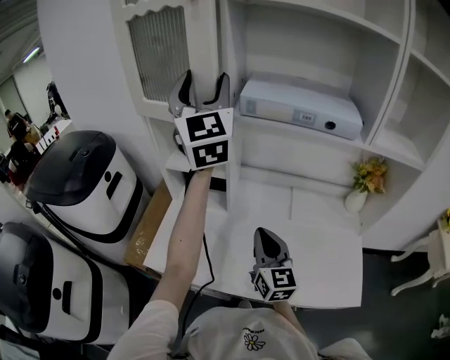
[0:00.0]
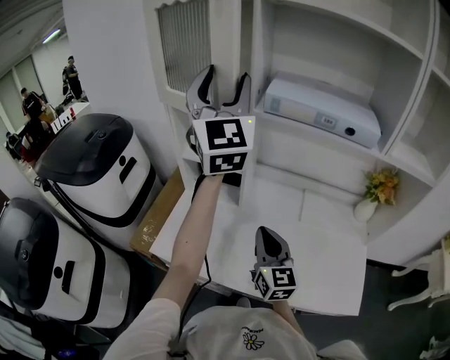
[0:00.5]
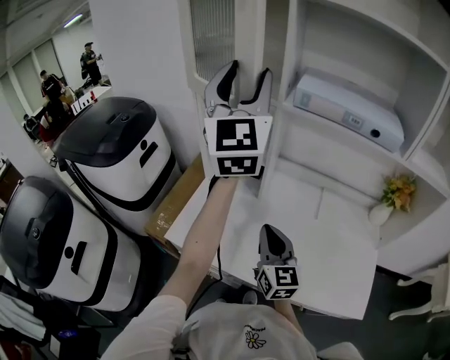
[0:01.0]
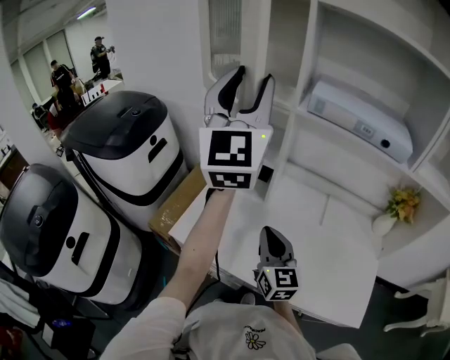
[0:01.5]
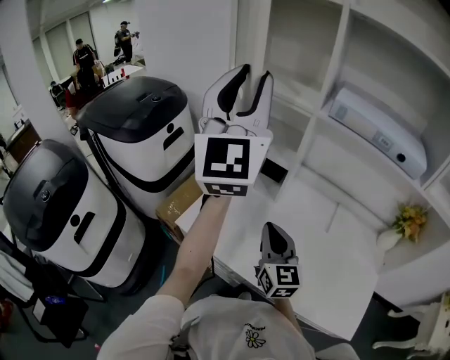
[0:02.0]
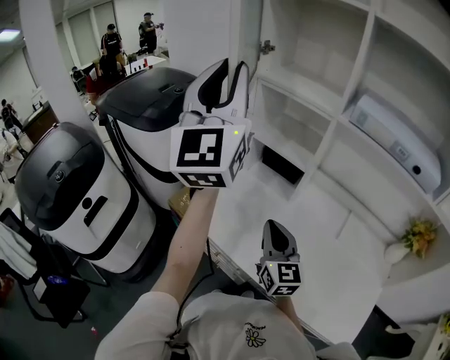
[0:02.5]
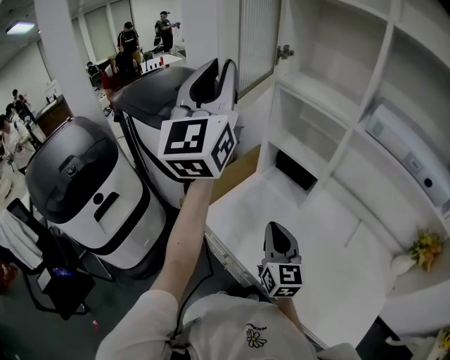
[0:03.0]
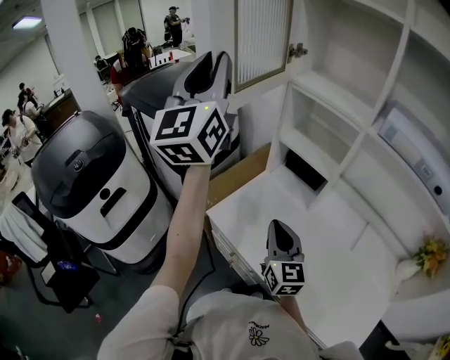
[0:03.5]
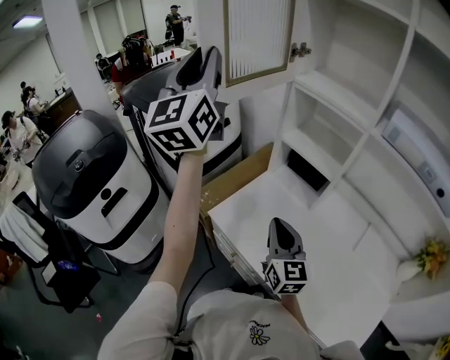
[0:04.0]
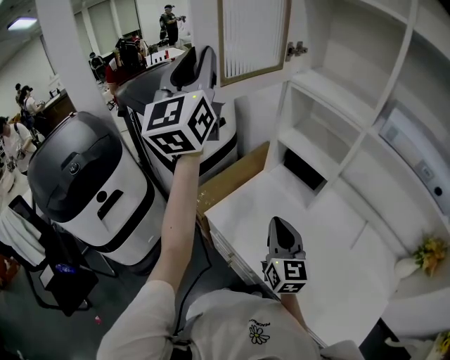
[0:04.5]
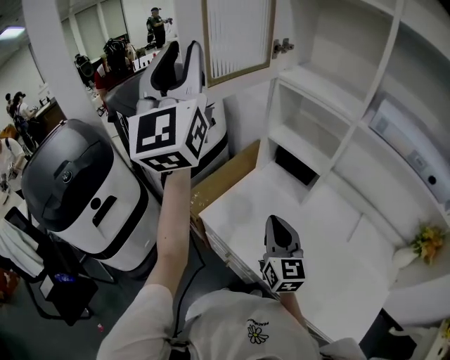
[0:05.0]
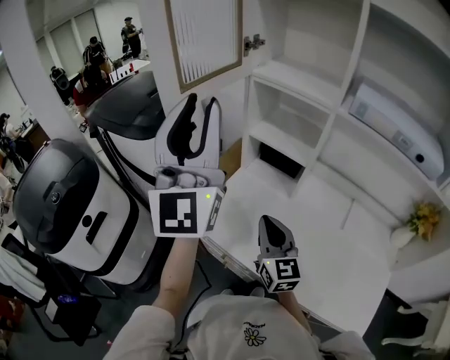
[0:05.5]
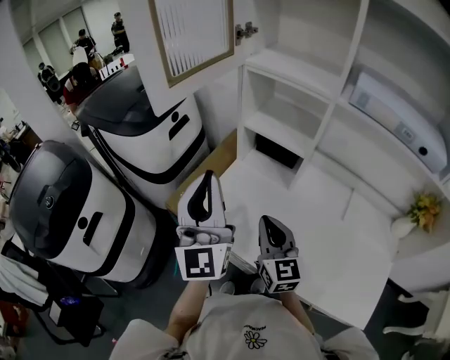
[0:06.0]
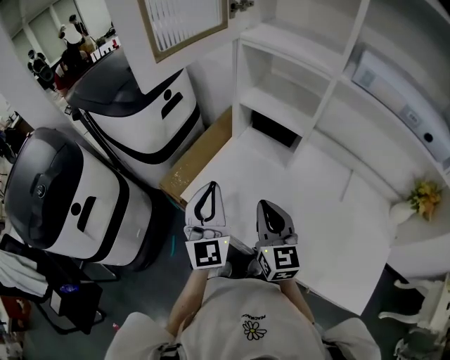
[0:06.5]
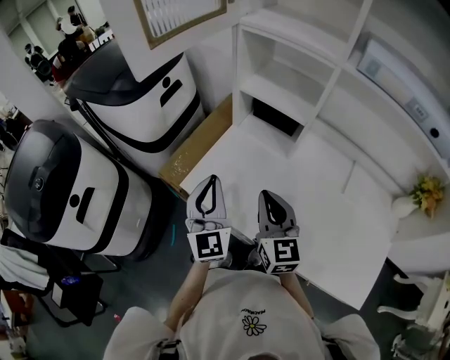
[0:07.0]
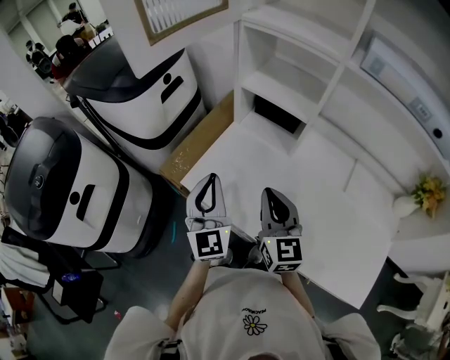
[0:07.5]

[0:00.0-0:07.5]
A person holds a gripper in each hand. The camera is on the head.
0:00.0 to 0:02.0: The left gripper is displaced backward and to the left by roughly 15 cm, and closes up, while the right gripper shifts approximately 10 cm to the left.
0:02.0 to 0:04.0: The left gripper moves to the left, approximately 20 cm. The right gripper shifts approximately 10 cm to the left.
0:04.0 to 0:05.5: The left gripper is displaced backward and to the right by some 15 cm.
0:05.5 to 0:07.5: The left gripper is displaced downward by roughly 30 cm, and points its fingers about 30 degrees further downward.

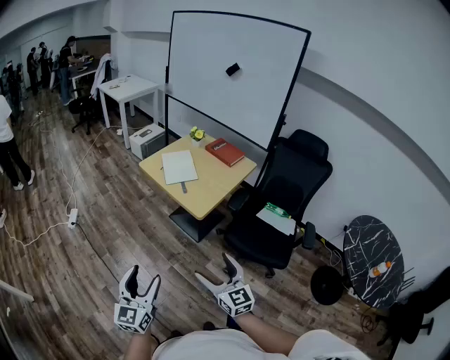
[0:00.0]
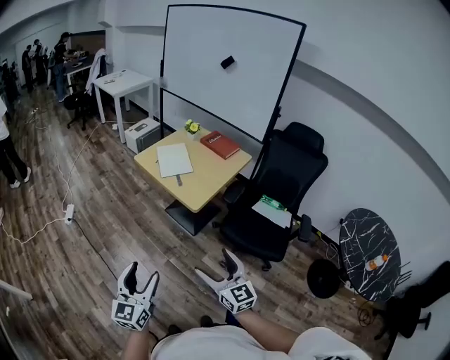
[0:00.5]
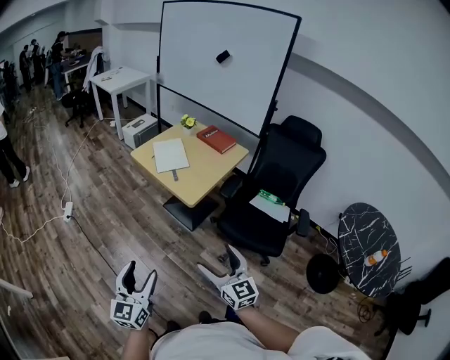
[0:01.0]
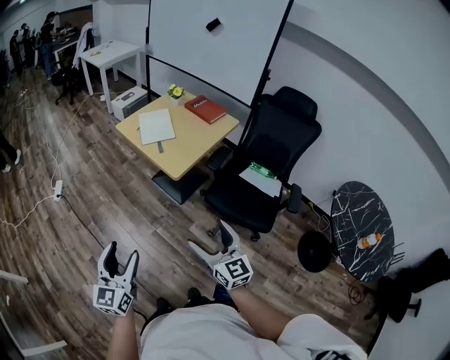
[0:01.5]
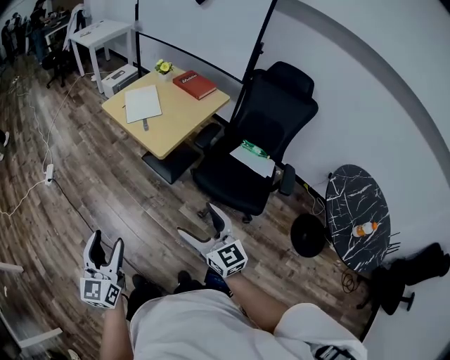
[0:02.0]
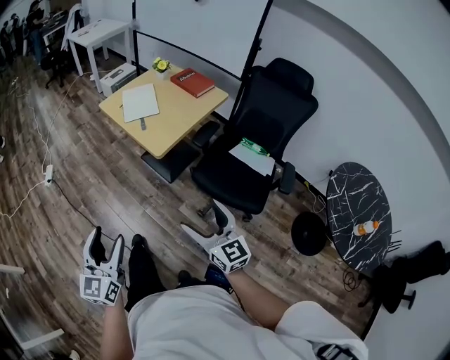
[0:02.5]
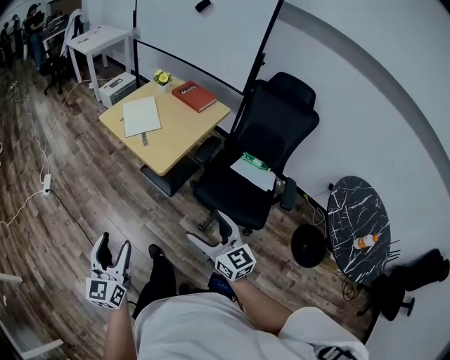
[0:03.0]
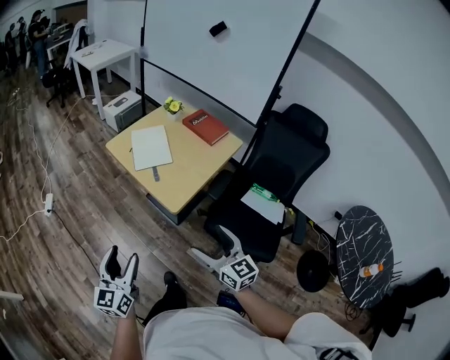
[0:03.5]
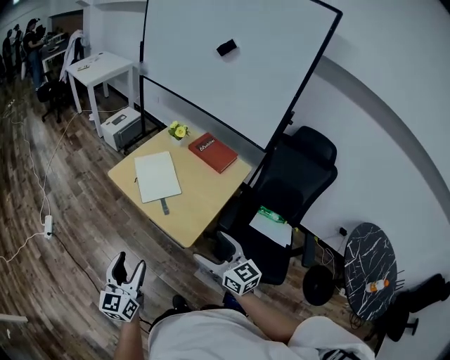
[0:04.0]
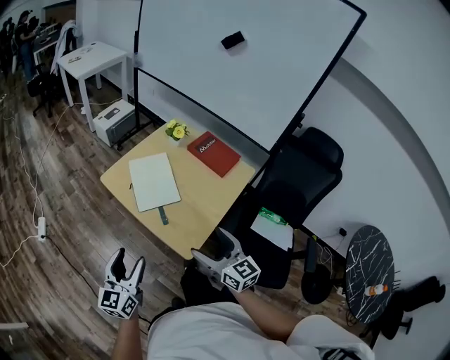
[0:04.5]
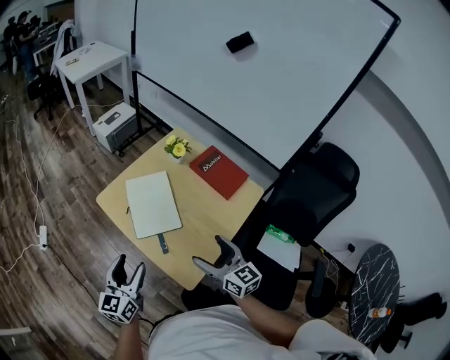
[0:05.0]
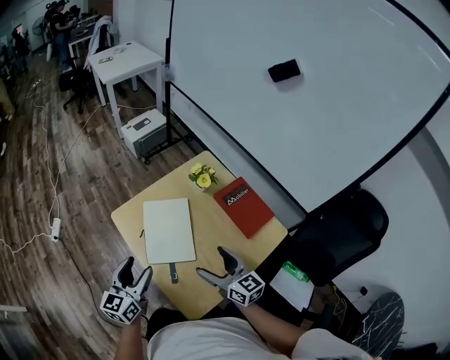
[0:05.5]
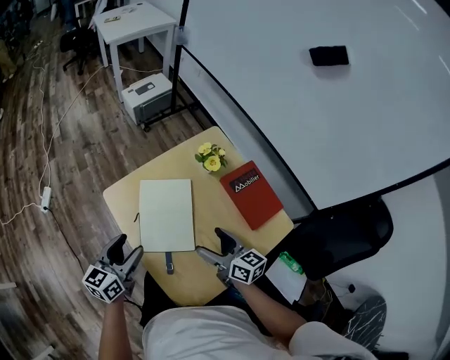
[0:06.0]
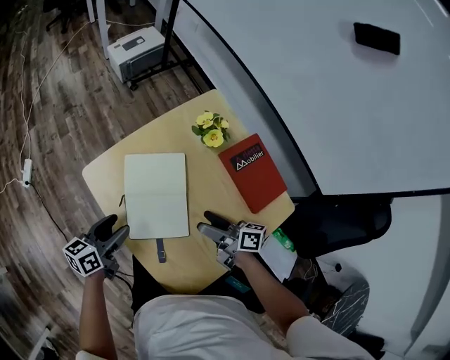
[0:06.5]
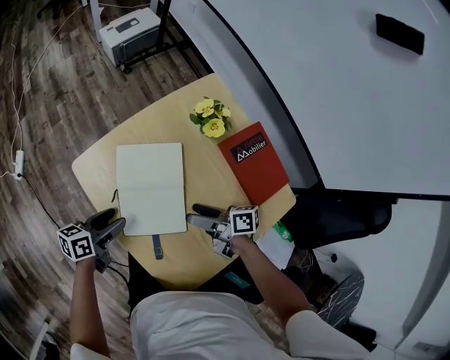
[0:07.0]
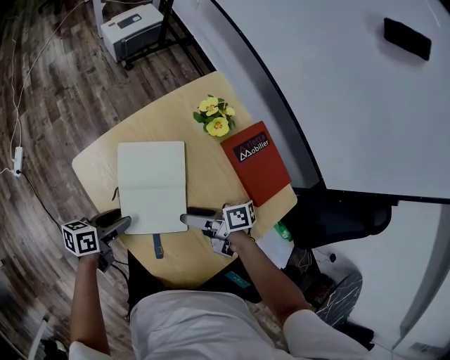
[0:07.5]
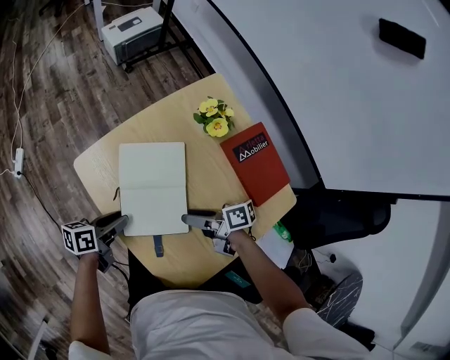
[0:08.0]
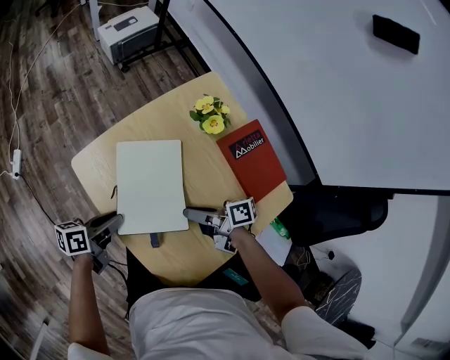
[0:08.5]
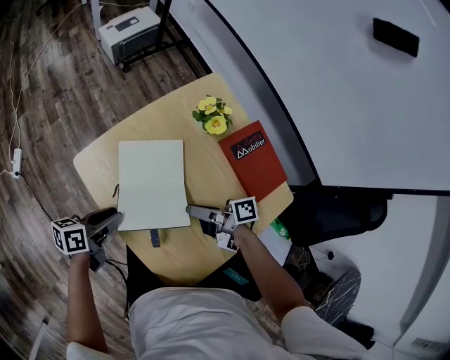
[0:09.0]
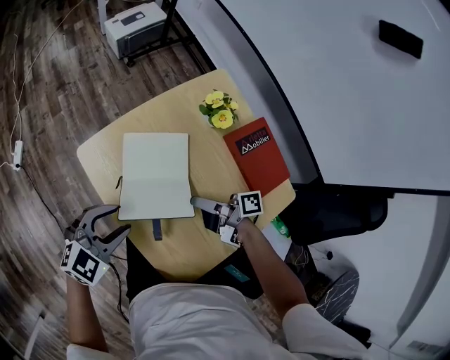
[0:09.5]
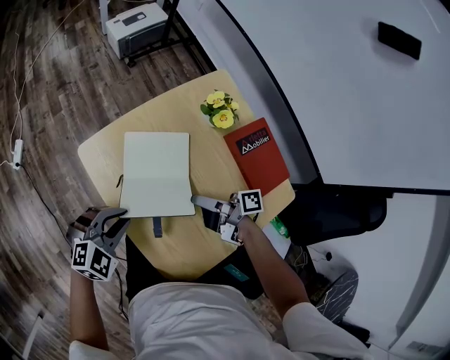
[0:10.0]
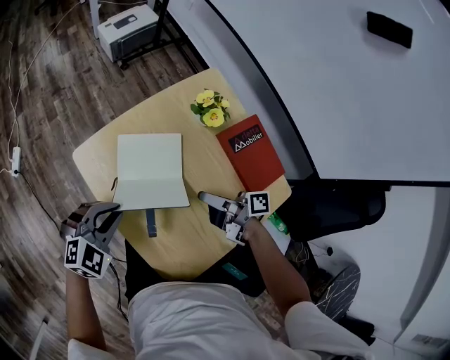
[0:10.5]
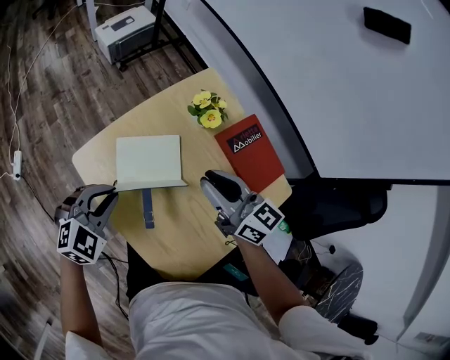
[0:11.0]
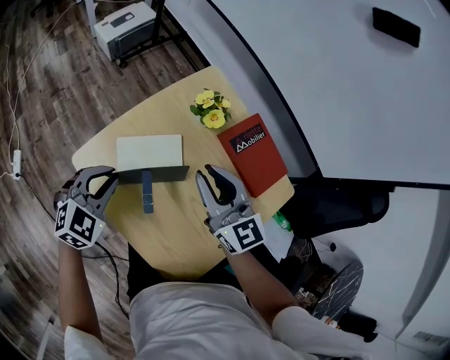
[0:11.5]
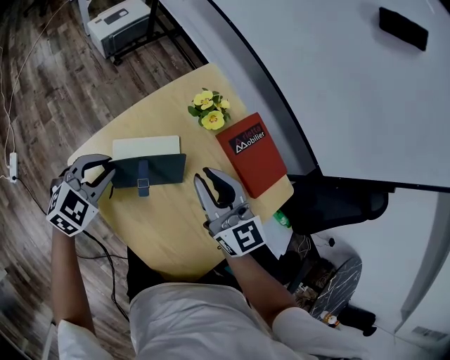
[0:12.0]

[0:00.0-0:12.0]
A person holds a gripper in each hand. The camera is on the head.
0:00.0 to 0:02.0: The left gripper heads to the right, covering about 5 cm; the right gripper moves to the right, roughly 10 cm.
0:02.0 to 0:04.0: The grippers both shift forward by about 30 cm.
0:04.0 to 0:06.0: Both grippers travel together forward, roughly 35 cm. The right gripper changes its angle by about 30 degrees.
0:06.0 to 0:08.0: The right gripper heads downward, covering about 10 cm, turns by some 50 degrees, and closes up. Meanwhile the left gripper heads downward, covering about 15 cm, swivels about 40 degrees, and closes.
0:08.0 to 0:10.0: The left gripper shifts about 10 cm upward, and twists approximately 80 degrees clockwise, seen from behind.
0:10.0 to 0:12.0: The right gripper is displaced upward and forward by about 15 cm, and rotates around the line of its fingers by about 80 degrees, counterclockwise from behind; the left gripper heads forward, covering roughly 15 cm.

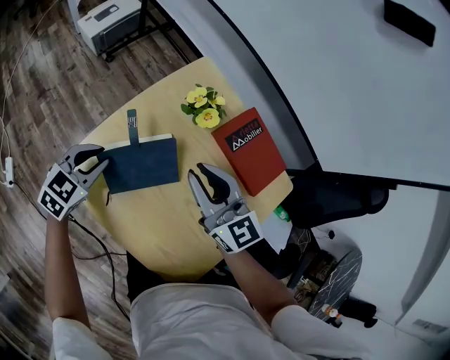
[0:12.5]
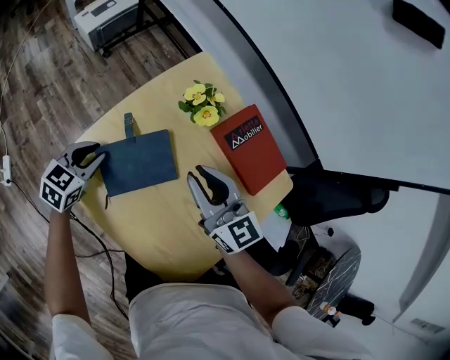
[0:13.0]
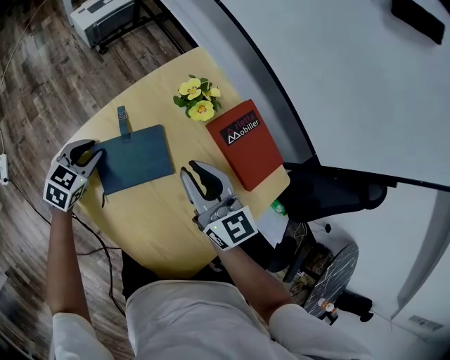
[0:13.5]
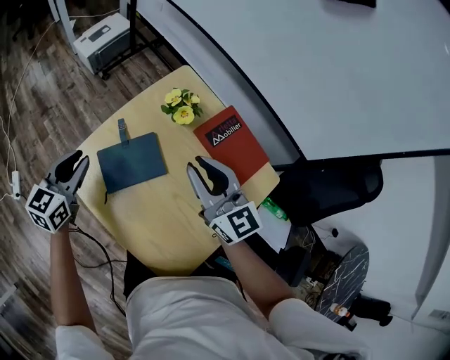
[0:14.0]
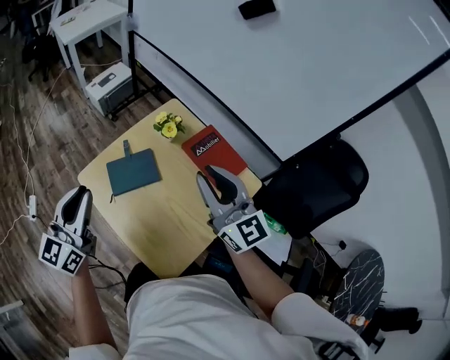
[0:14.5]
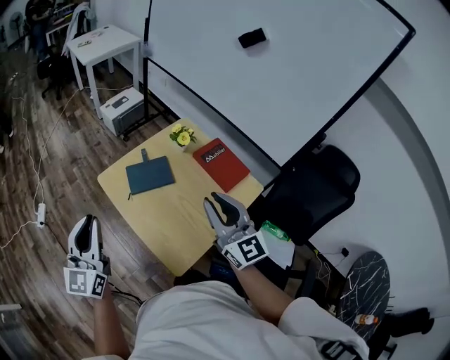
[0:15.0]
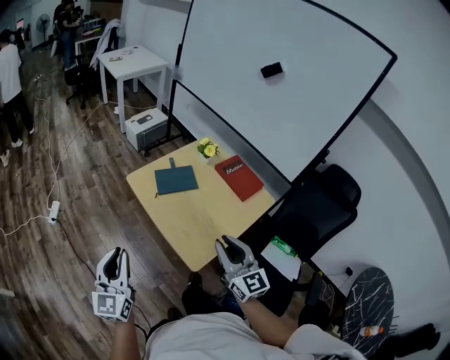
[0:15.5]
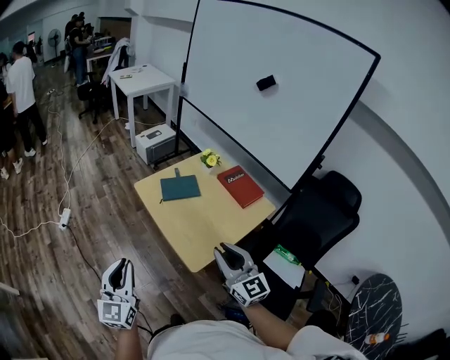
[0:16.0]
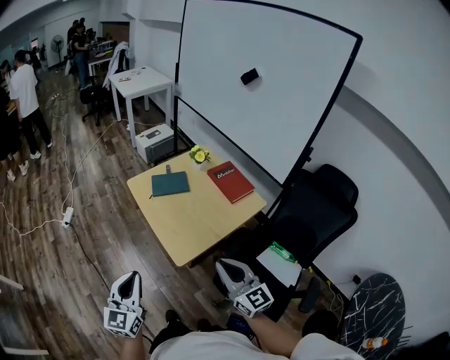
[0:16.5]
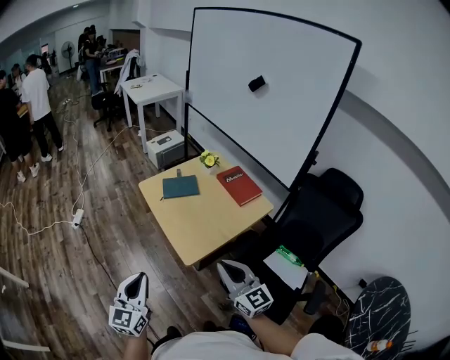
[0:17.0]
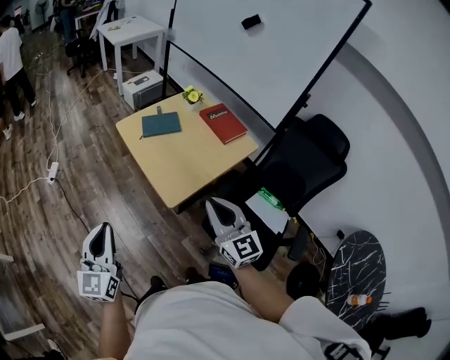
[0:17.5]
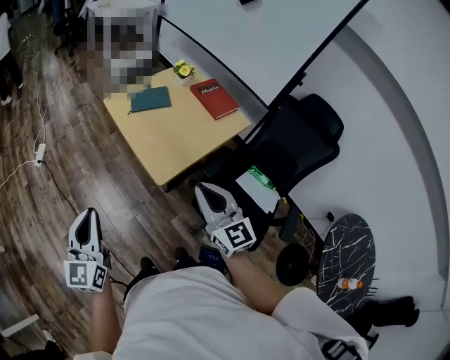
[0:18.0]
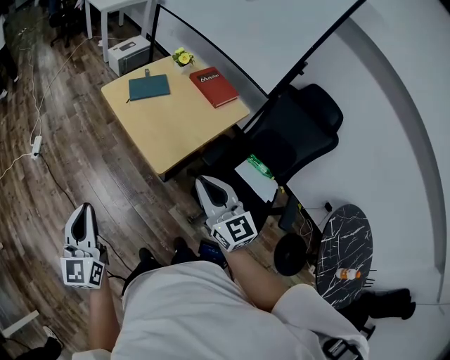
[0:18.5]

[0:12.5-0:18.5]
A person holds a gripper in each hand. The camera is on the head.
0:12.5 to 0:14.5: The left gripper travels upward and backward by about 35 cm, and tilts its fingers roughly 40 degrees upward, while the right gripper is displaced upward, to the right and backward by about 25 cm.
0:14.5 to 0:16.5: The two grippers go approximately 40 cm backward.
0:16.5 to 0:18.5: The left gripper shifts roughly 10 cm to the left and backward. Meanwhile the right gripper goes approximately 5 cm to the left.

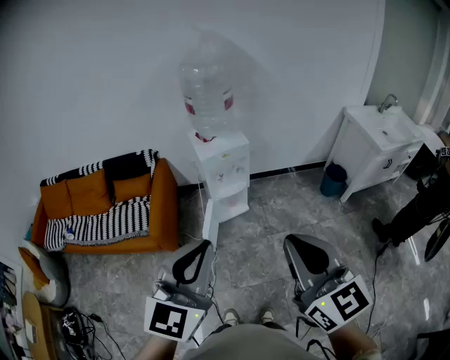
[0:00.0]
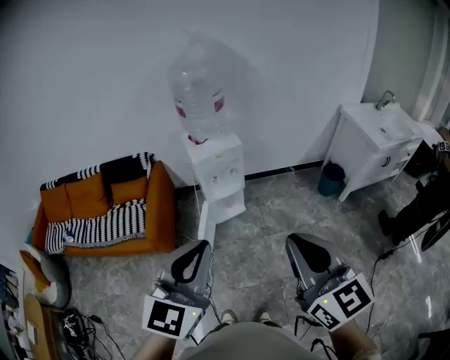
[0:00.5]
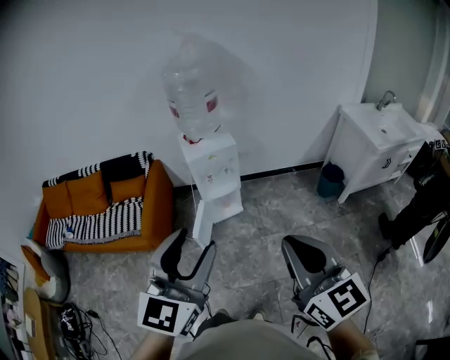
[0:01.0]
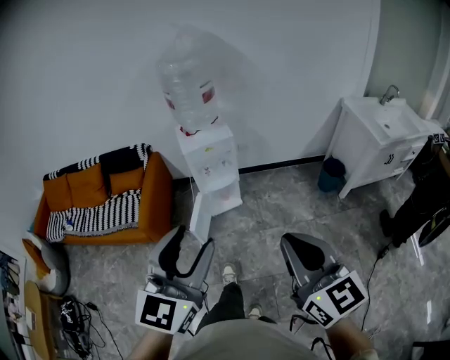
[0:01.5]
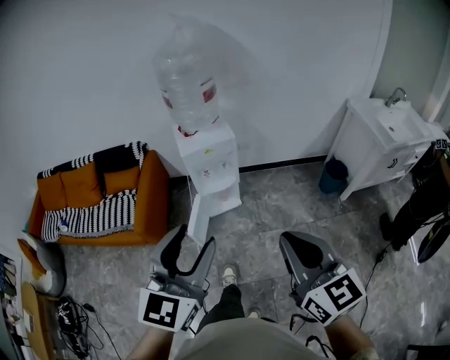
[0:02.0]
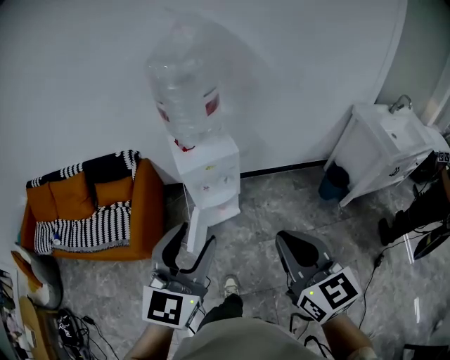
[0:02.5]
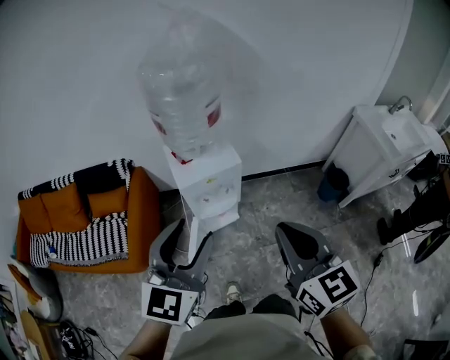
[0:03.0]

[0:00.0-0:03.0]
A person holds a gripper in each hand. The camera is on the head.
0:00.0 to 0:01.5: The grippers both shift to the right by about 10 cm. The left gripper opens.
0:01.5 to 0:03.0: Both grippers travel together forward, about 30 cm.
